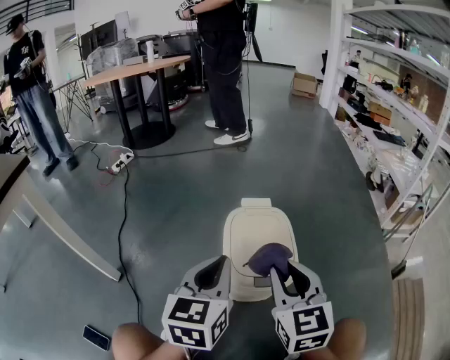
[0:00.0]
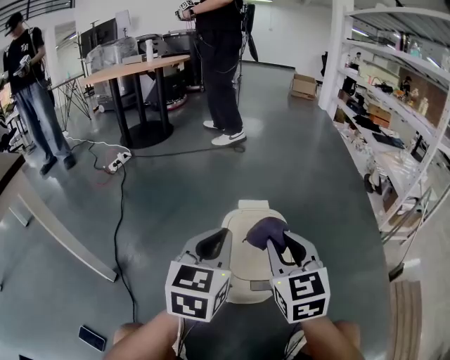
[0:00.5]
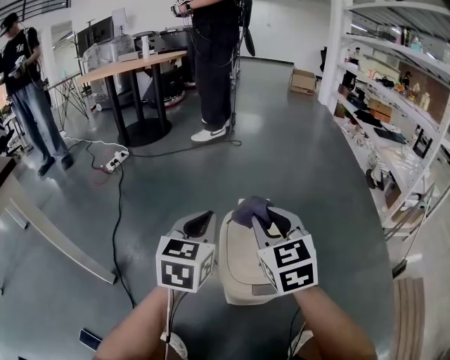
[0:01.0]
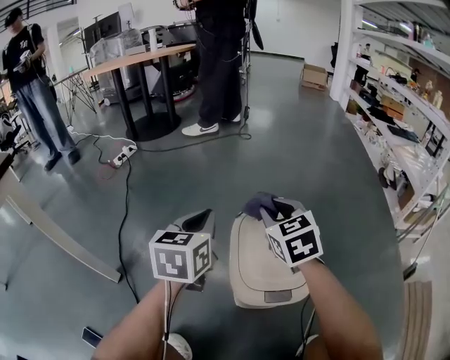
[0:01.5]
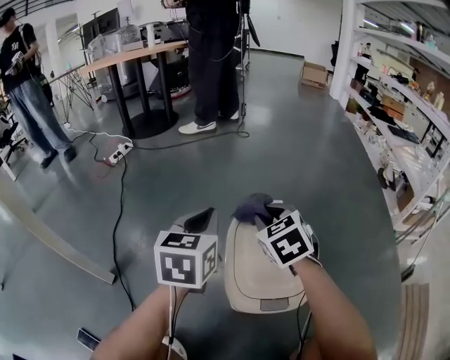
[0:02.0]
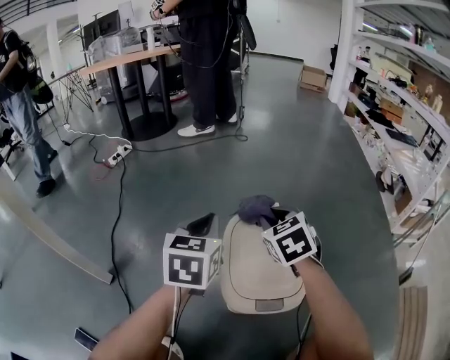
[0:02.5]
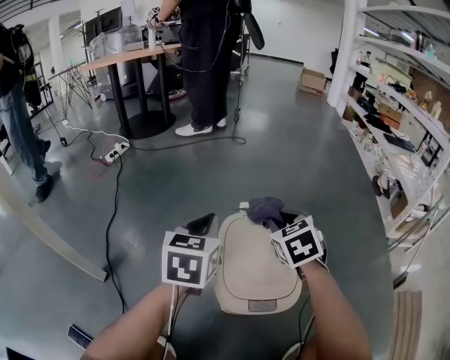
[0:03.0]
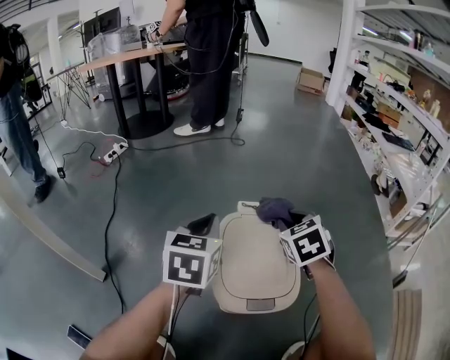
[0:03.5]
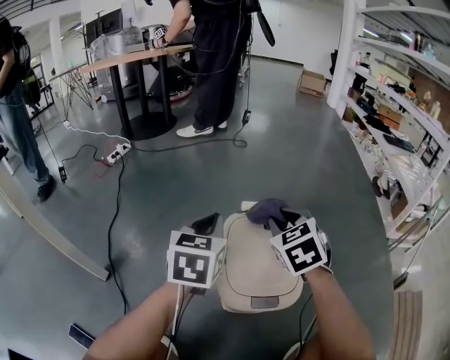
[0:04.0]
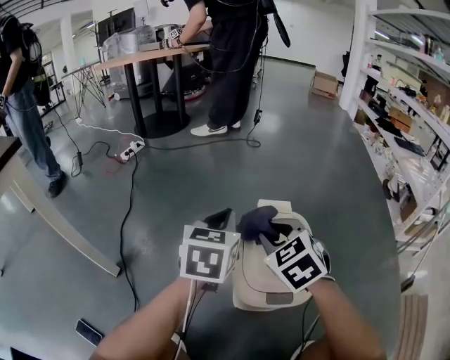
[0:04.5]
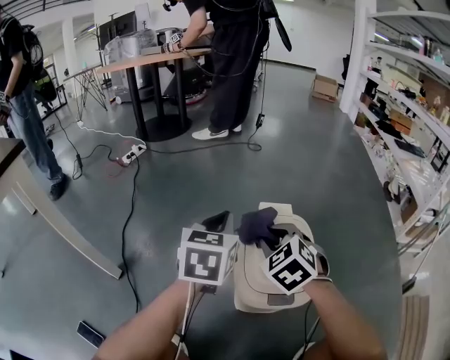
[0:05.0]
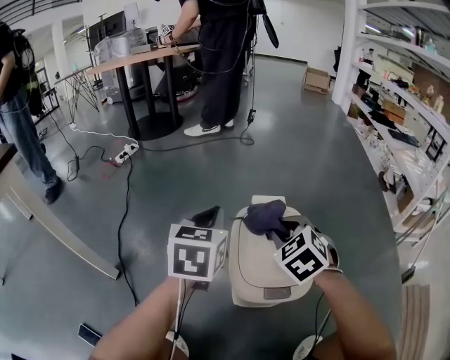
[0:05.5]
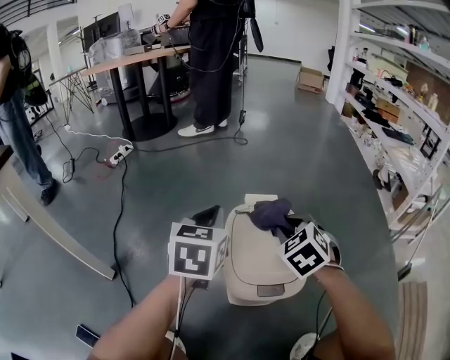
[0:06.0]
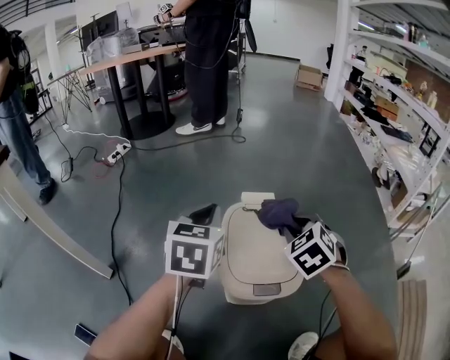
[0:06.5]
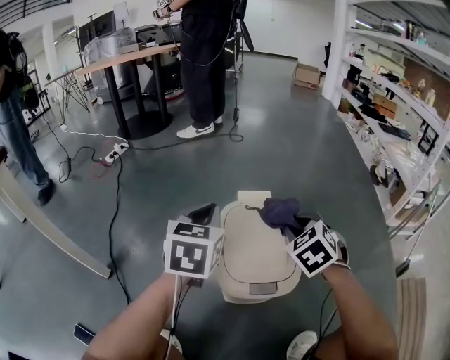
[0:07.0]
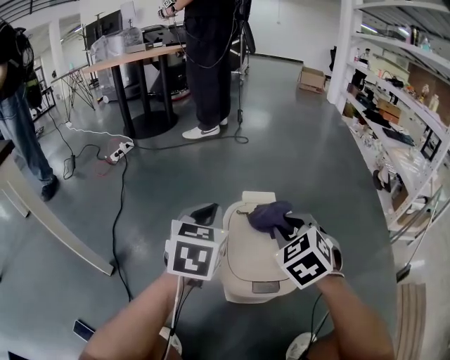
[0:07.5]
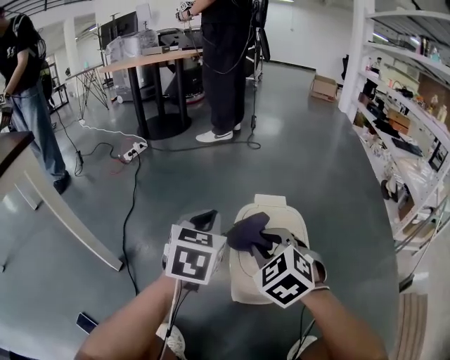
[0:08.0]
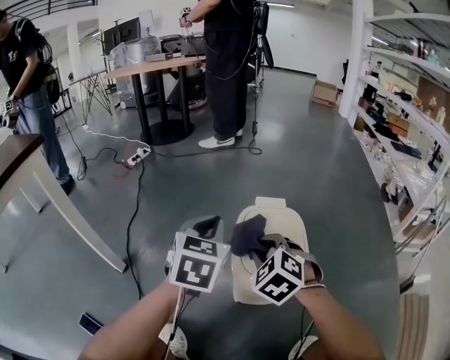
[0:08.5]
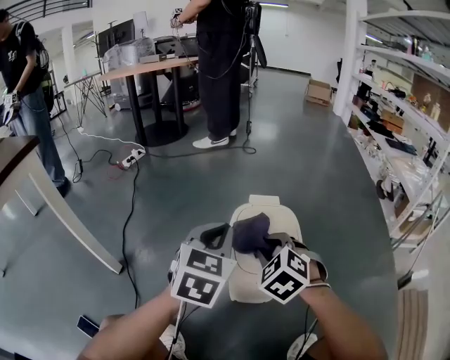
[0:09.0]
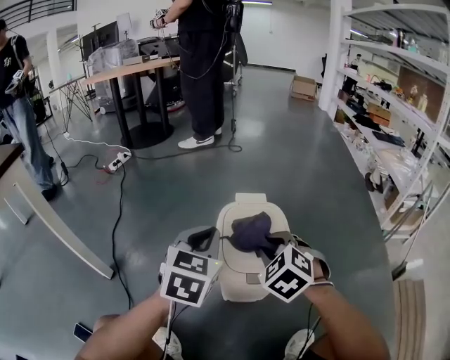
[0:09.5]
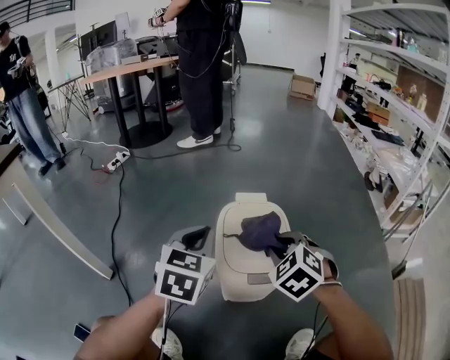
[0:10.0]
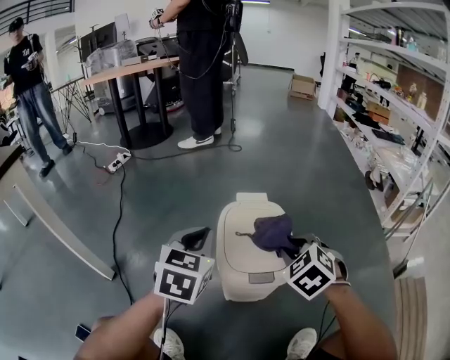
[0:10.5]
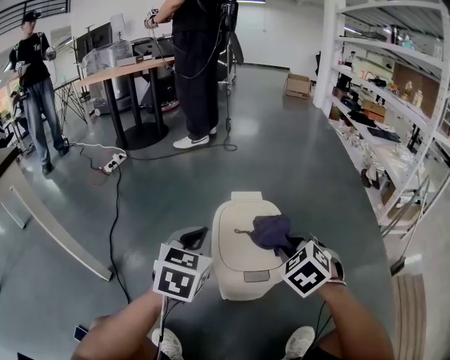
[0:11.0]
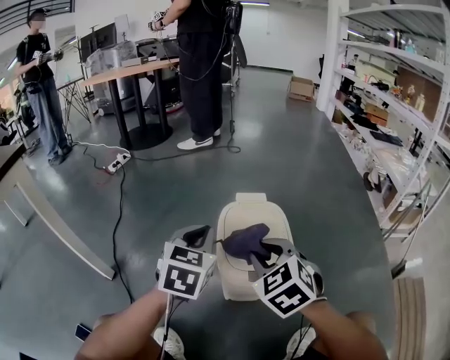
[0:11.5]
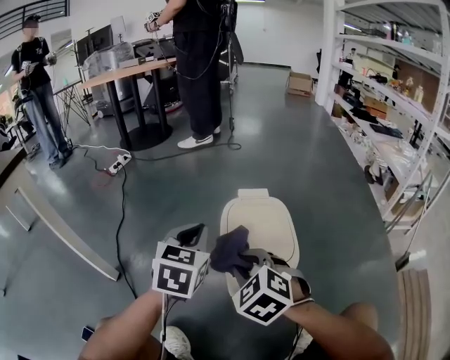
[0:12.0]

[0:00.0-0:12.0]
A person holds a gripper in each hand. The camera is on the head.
0:00.0 to 0:02.0: The left gripper goes some 20 cm forward. The right gripper shifts some 25 cm forward and downward, and changes its angle by roughly 30 degrees.
0:02.0 to 0:04.0: The right gripper moves to the right, some 5 cm.
0:04.0 to 0:06.0: The right gripper moves approximately 10 cm to the left and comes back.
0:06.0 to 0:08.0: The right gripper travels to the left and backward by roughly 10 cm.
0:08.0 to 0:10.0: The right gripper goes roughly 10 cm to the right. Meanwhile the left gripper moves some 5 cm.
0:10.0 to 0:12.0: The right gripper heads to the left and backward, covering approximately 15 cm.

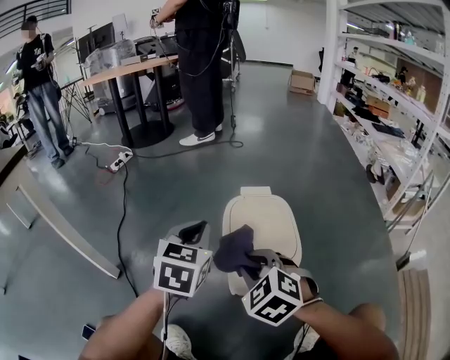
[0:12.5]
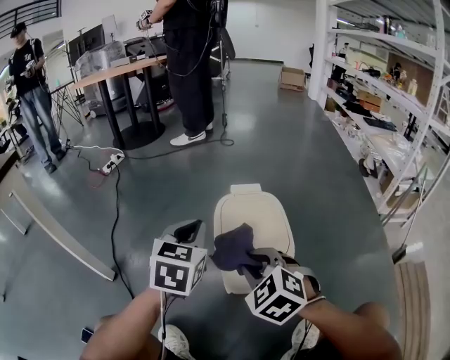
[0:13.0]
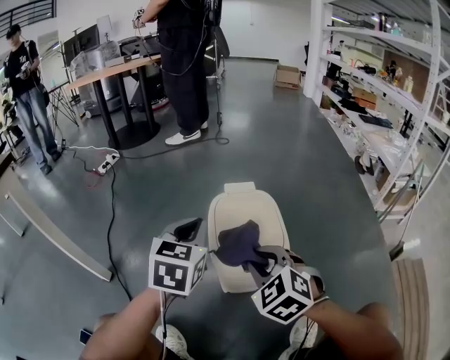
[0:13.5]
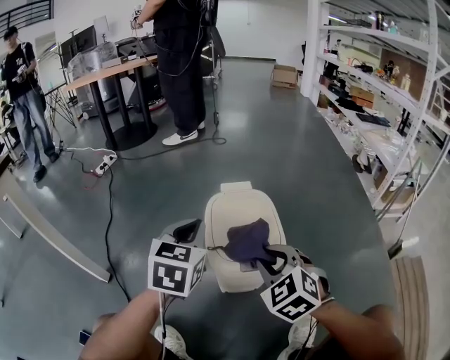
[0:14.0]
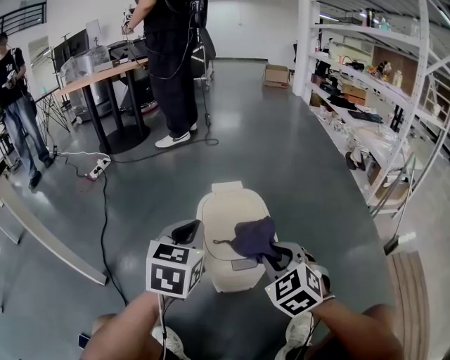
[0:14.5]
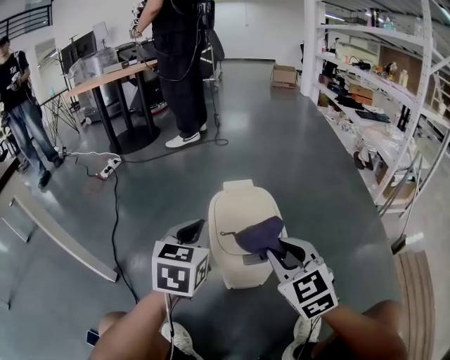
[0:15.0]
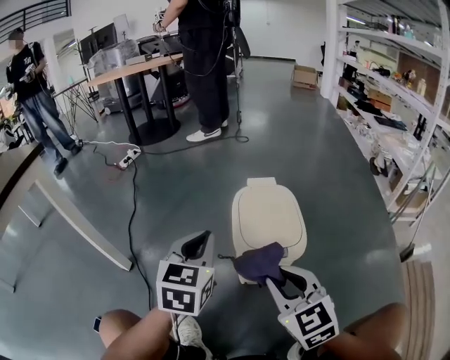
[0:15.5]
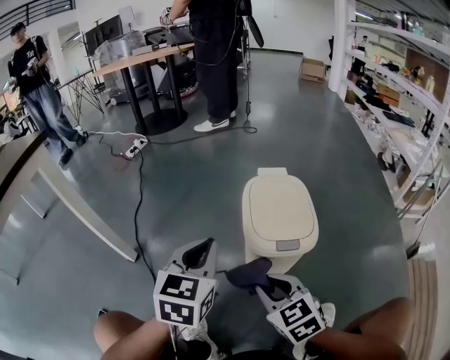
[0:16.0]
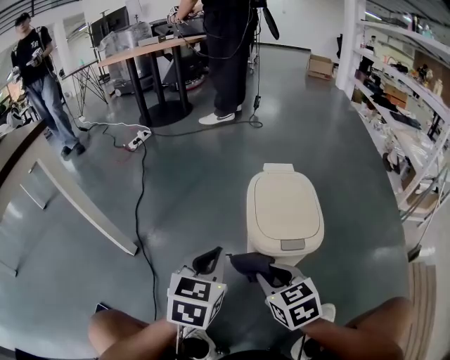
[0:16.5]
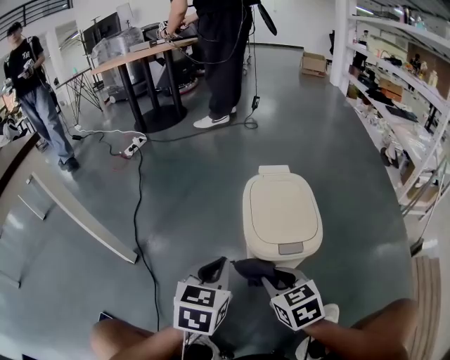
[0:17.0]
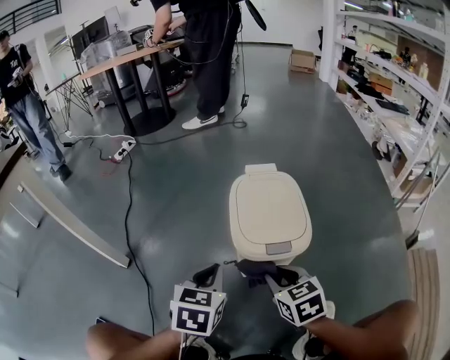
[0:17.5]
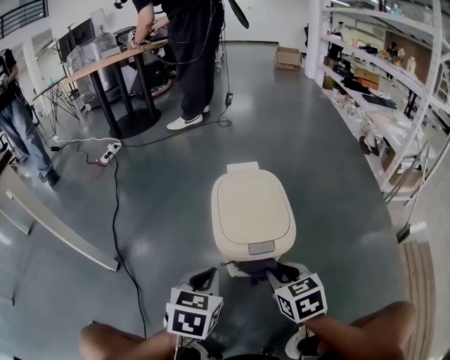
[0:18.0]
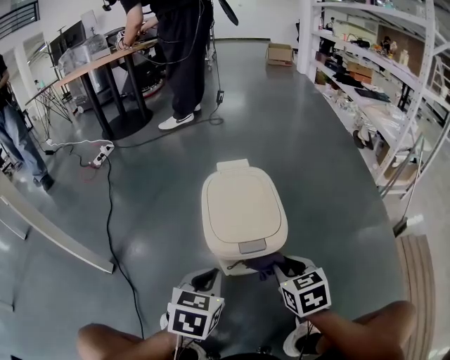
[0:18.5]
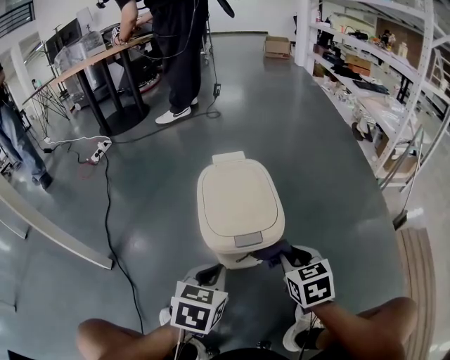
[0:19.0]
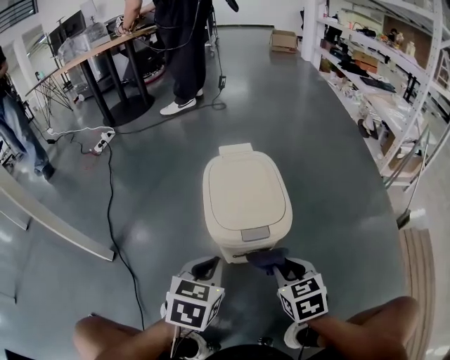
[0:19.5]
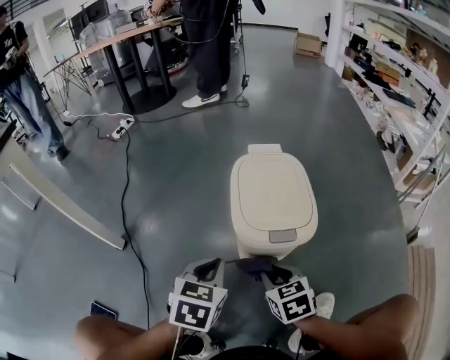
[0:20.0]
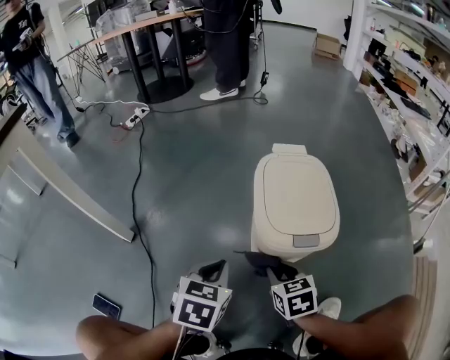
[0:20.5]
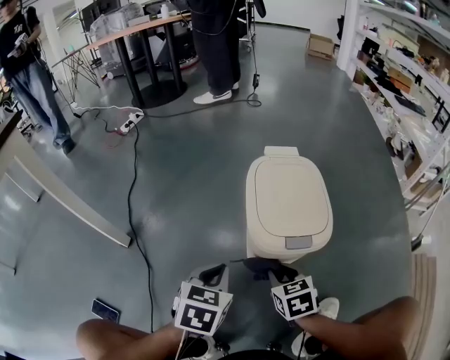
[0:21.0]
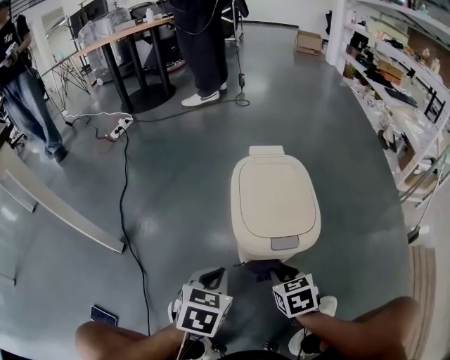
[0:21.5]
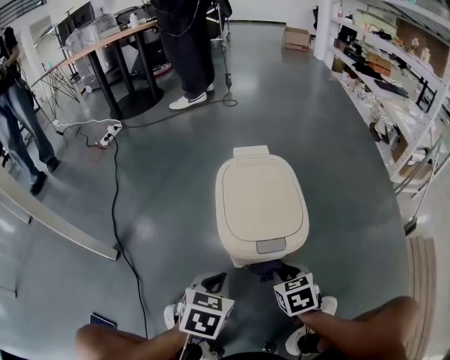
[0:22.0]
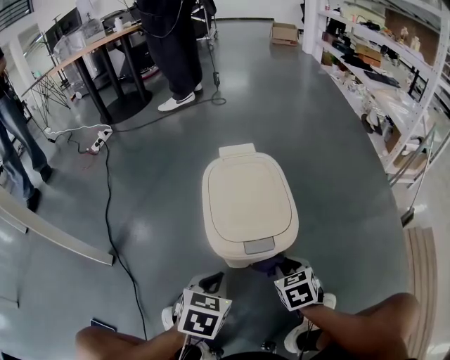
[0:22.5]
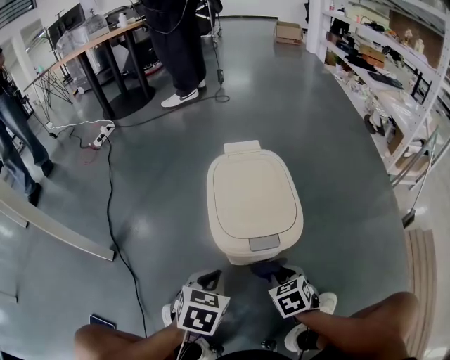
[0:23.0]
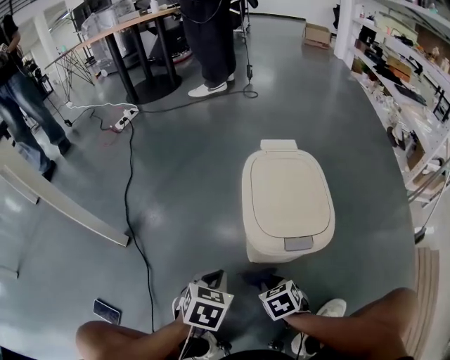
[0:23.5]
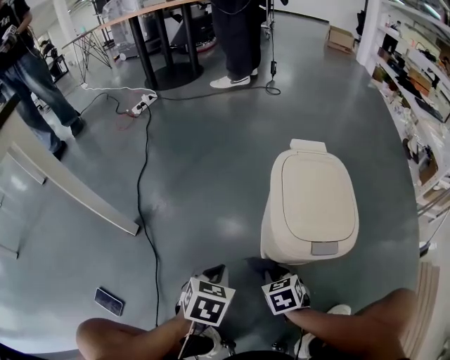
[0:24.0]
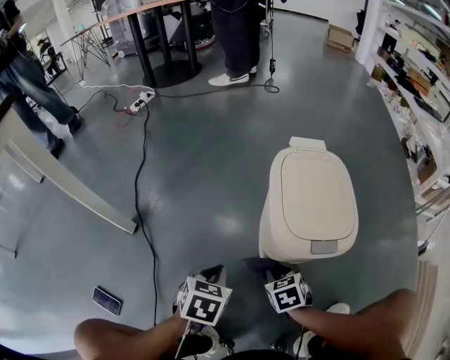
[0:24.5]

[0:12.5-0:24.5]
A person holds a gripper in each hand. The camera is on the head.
0:12.5 to 0:14.5: The left gripper is displaced to the right by about 5 cm. Meanwhile the right gripper moves to the right, about 15 cm.
0:14.5 to 0:16.5: The left gripper moves backward, to the left and downward, about 15 cm; the right gripper is displaced to the left, backward and downward by about 15 cm, and rotates some 30 degrees.
0:16.5 to 0:18.5: The right gripper is displaced to the right by approximately 15 cm, while the left gripper shifts roughly 10 cm to the right and downward.
0:18.5 to 0:20.5: The right gripper heads to the left and downward, covering some 15 cm, while the left gripper heads to the left, covering roughly 10 cm.
0:20.5 to 0:22.5: The two grippers go about 10 cm to the right.
0:22.5 to 0:24.5: The right gripper is displaced to the left and downward by approximately 15 cm. Meanwhile the left gripper goes roughly 15 cm to the left.

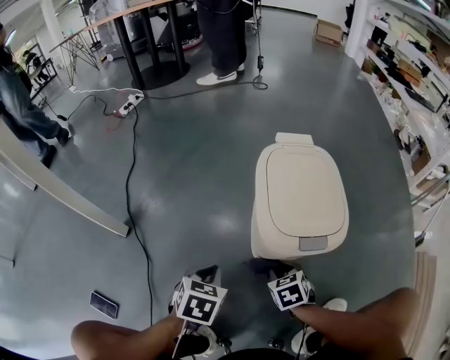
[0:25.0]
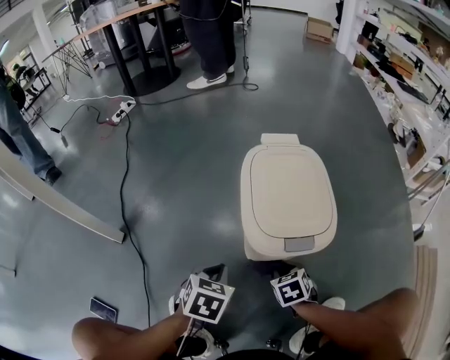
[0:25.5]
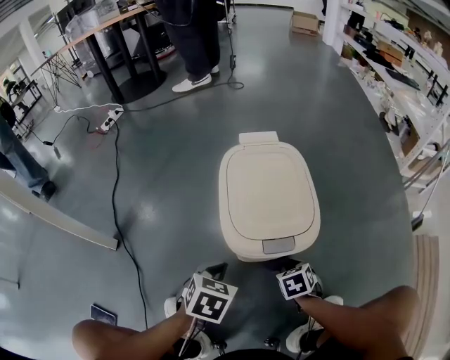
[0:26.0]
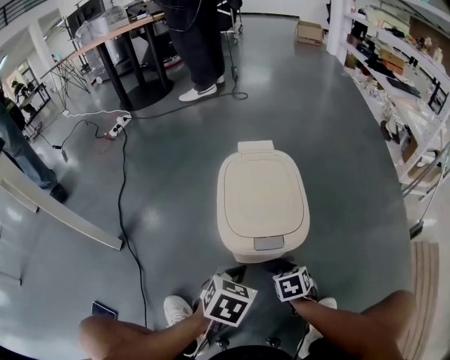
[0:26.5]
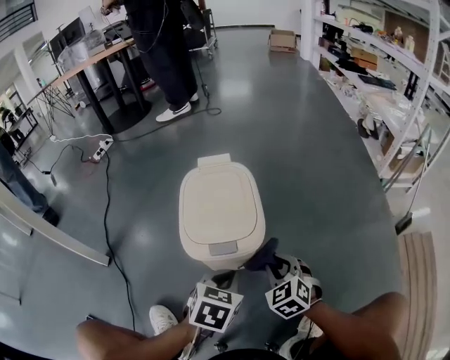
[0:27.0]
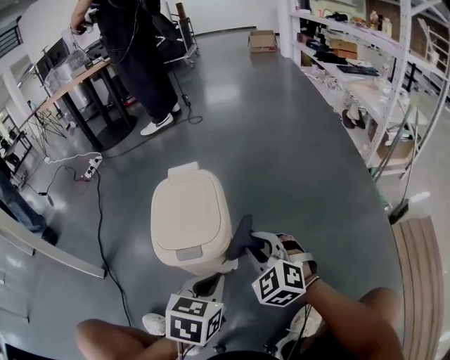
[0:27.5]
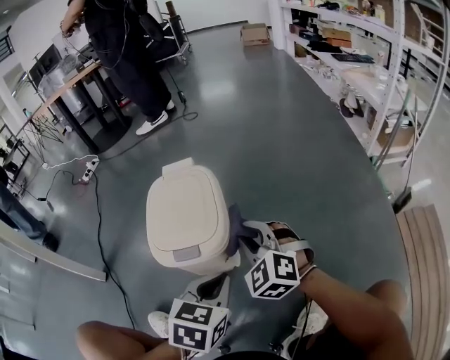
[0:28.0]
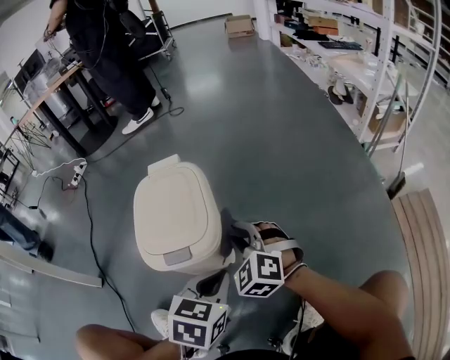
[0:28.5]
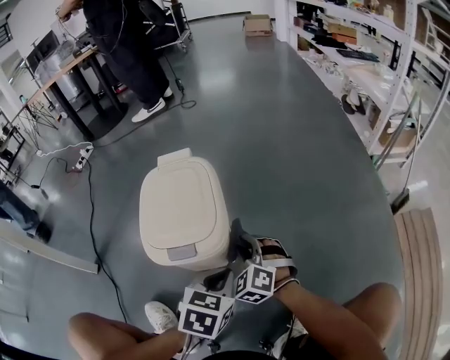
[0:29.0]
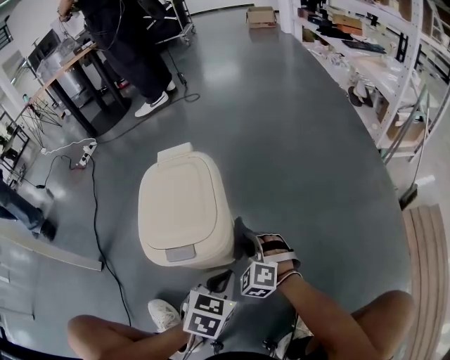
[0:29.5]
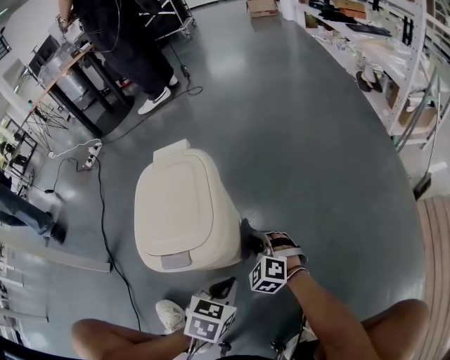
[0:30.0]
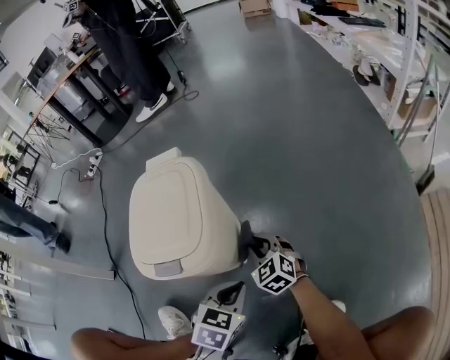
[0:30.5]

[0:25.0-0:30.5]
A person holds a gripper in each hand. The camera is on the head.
0:25.0 to 0:27.0: The right gripper shifts some 20 cm to the right and upward, and rotates some 30 degrees; the left gripper shifts approximately 25 cm to the right.
0:27.0 to 0:28.5: The left gripper goes about 10 cm to the right; the right gripper goes some 5 cm forward.
0:28.5 to 0:30.5: Both grippers travel together downward, some 15 cm. The right gripper swivels approximately 30 degrees.
